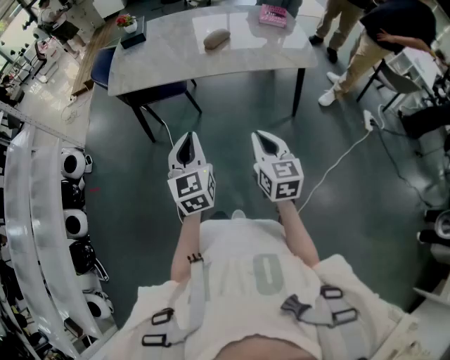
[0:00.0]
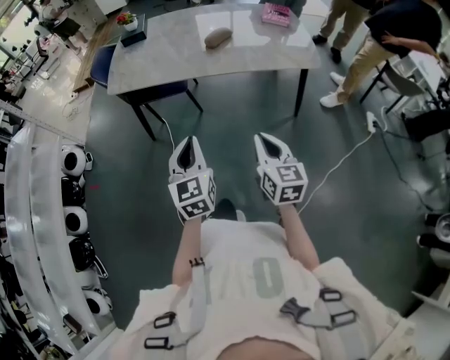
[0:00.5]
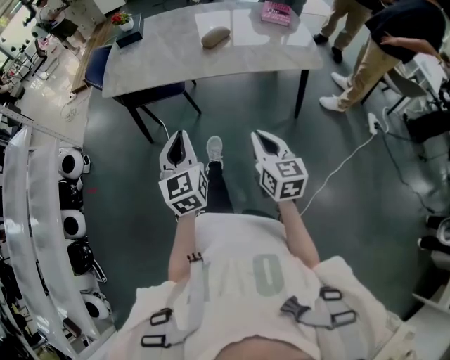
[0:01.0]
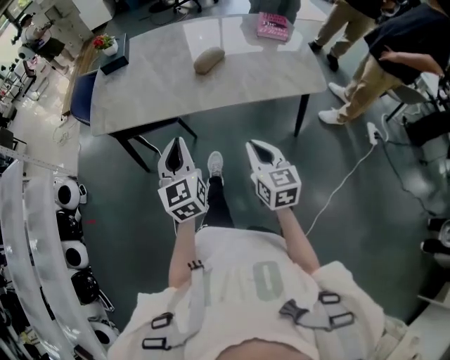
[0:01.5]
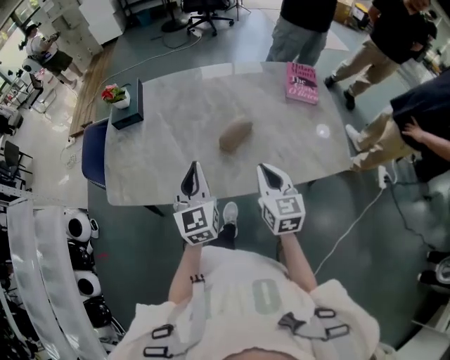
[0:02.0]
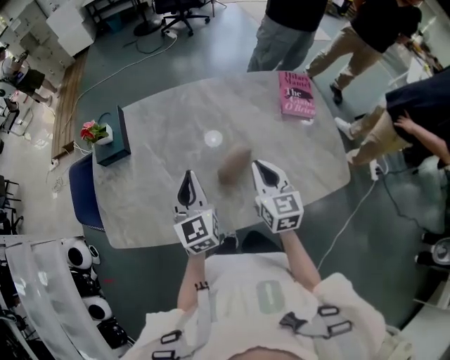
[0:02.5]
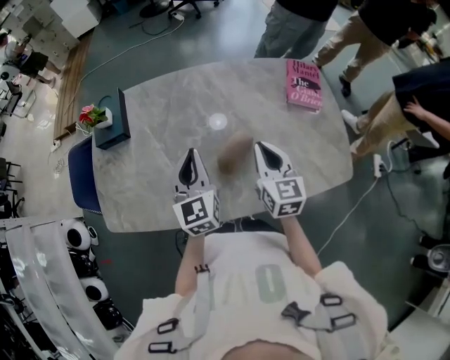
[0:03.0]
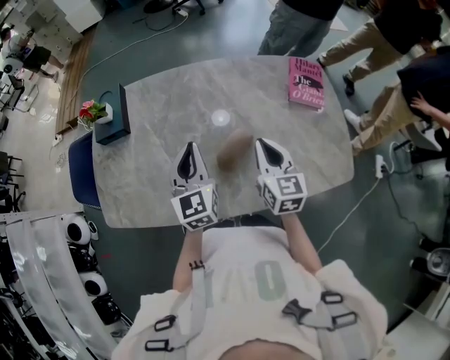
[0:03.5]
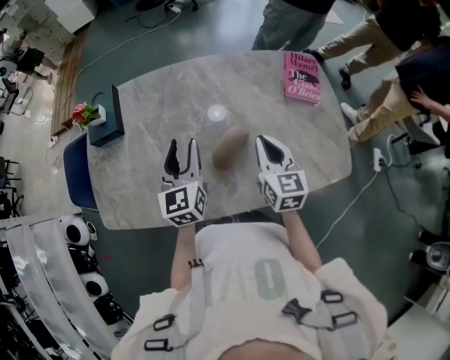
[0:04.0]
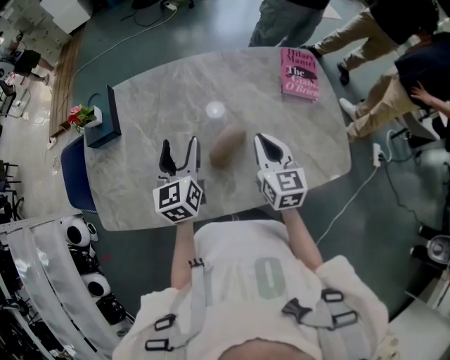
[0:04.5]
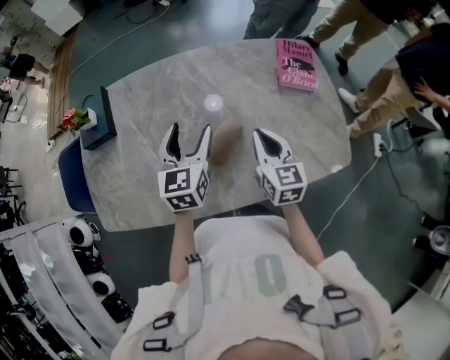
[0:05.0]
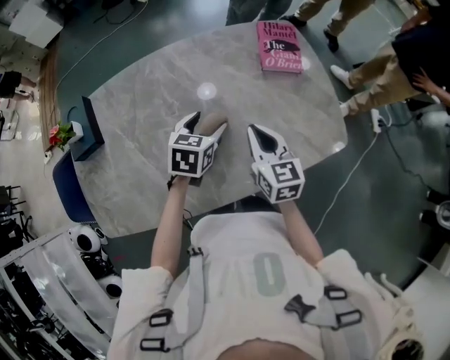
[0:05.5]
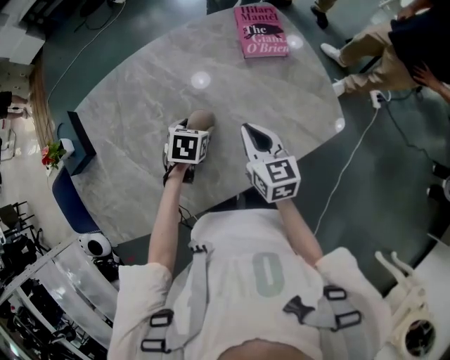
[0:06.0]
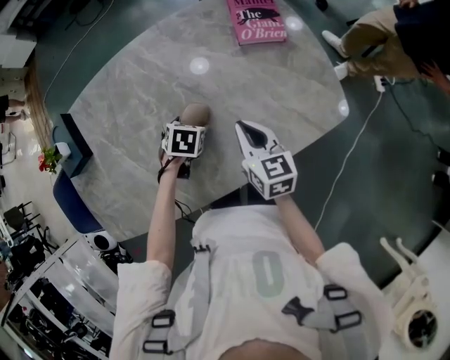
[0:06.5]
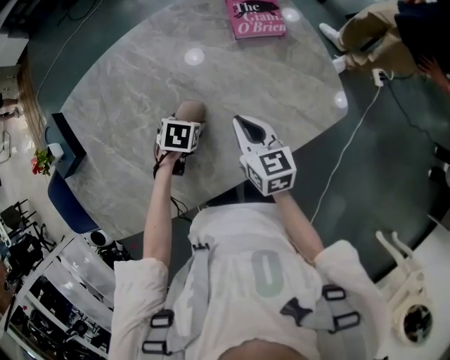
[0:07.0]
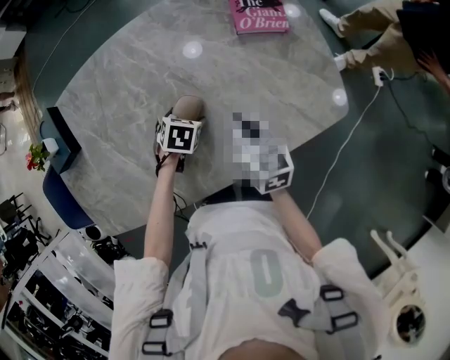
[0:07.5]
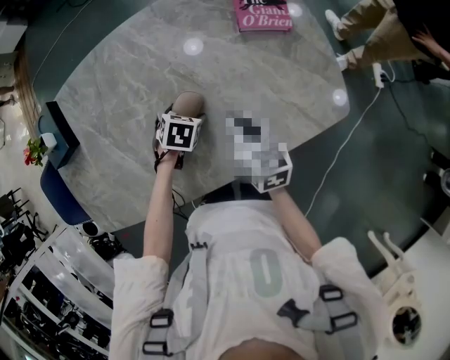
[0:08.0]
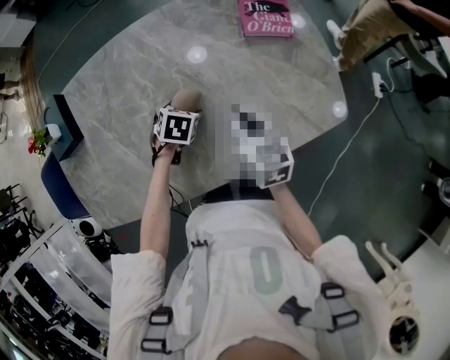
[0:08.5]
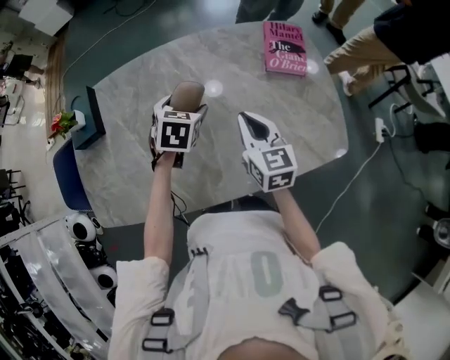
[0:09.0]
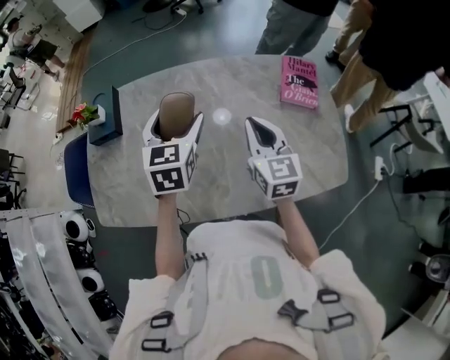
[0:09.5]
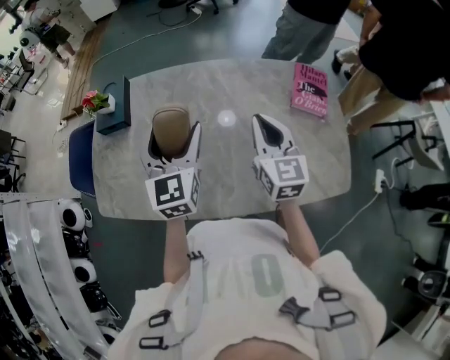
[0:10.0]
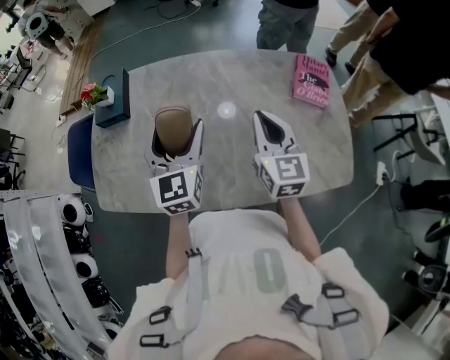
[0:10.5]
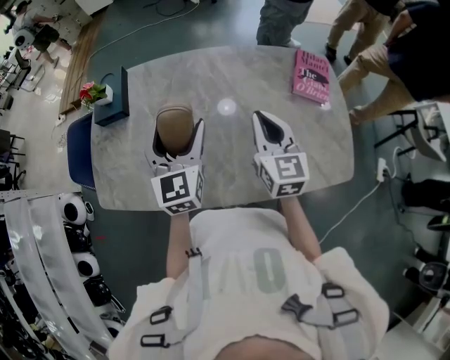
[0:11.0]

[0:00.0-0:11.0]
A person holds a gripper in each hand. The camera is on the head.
0:00.0 to 0:02.0: The pair of grippers is taken forward, about 50 cm.
0:02.0 to 0:03.5: The two grippers go about 15 cm forward.
0:03.5 to 0:05.5: The left gripper ends up roughly 20 cm from where it was, points its fingers approximately 30 degrees further downward, and opens its fingers, while the right gripper changes place by about 5 cm.
0:05.5 to 0:07.5: The right gripper heads downward, covering approximately 5 cm. The left gripper travels downward by some 15 cm, and turns by roughly 30 degrees.
0:07.5 to 0:09.0: The right gripper shifts about 10 cm upward. Meanwhile the left gripper goes approximately 15 cm upward, and rotates roughly 20 degrees.
0:09.0 to 0:11.0: The left gripper goes some 20 cm upward, to the left and backward, and angles its fingers upward, by about 40 degrees. The right gripper goes about 5 cm upward.

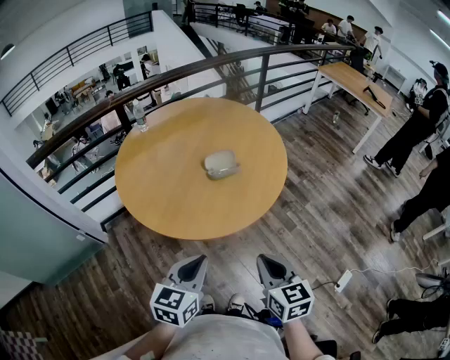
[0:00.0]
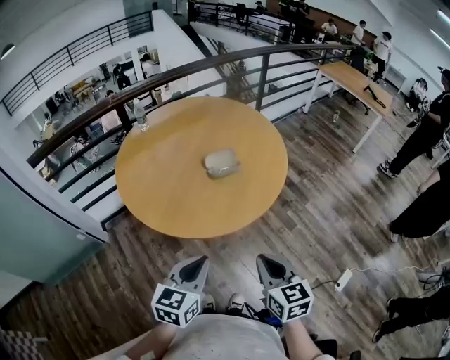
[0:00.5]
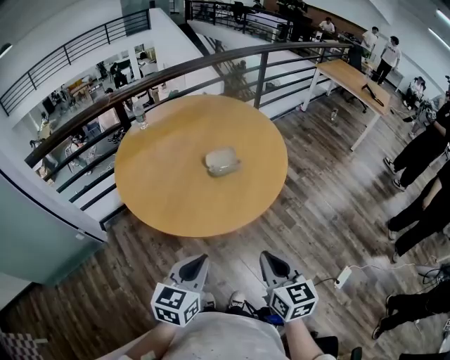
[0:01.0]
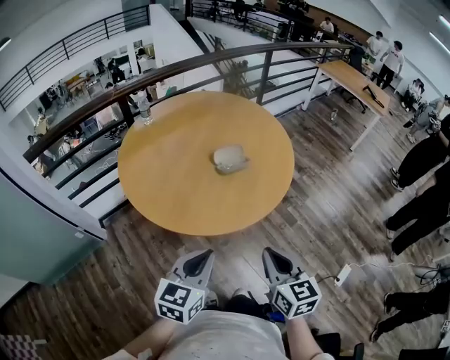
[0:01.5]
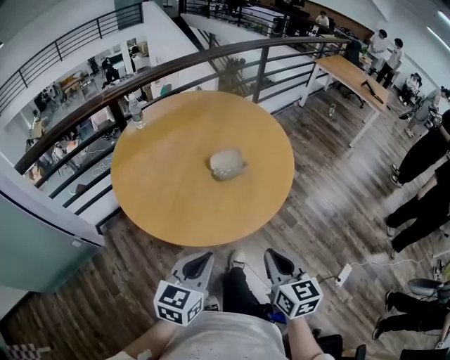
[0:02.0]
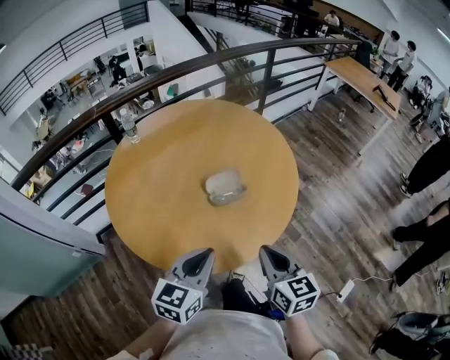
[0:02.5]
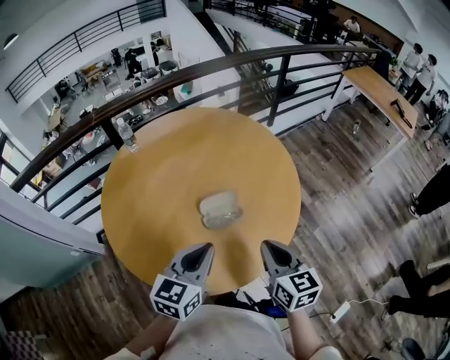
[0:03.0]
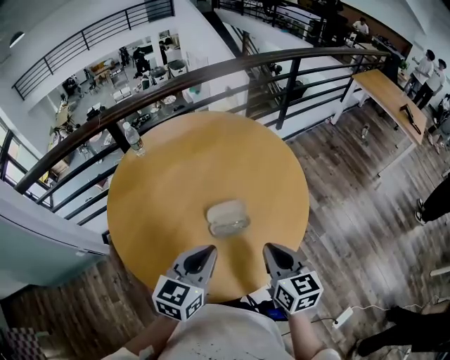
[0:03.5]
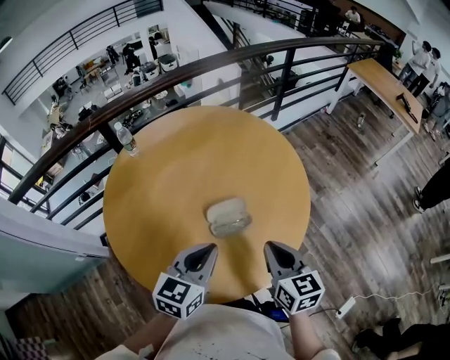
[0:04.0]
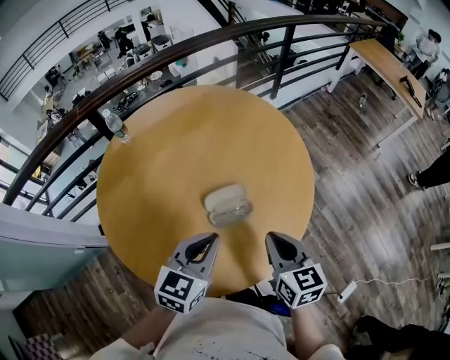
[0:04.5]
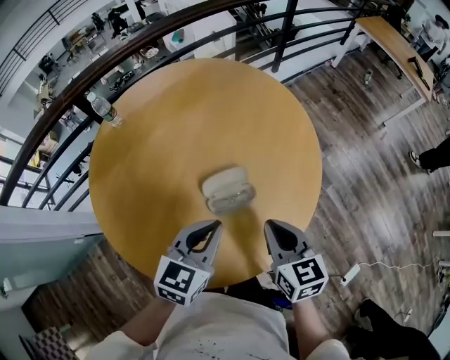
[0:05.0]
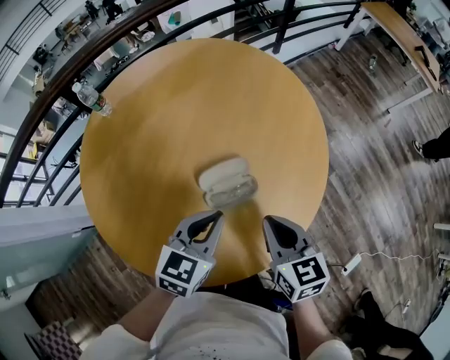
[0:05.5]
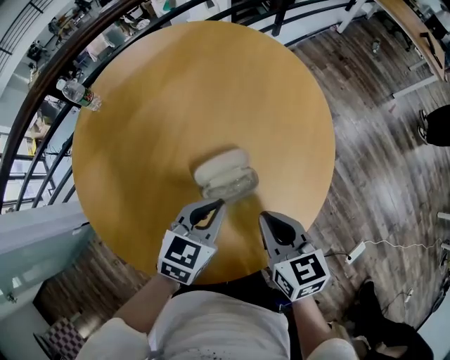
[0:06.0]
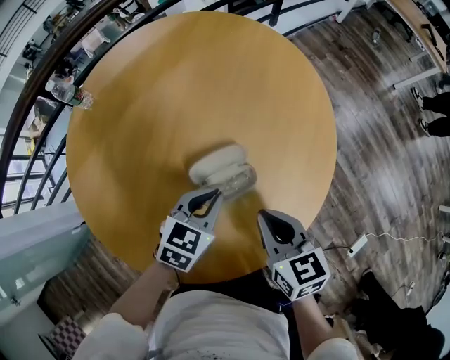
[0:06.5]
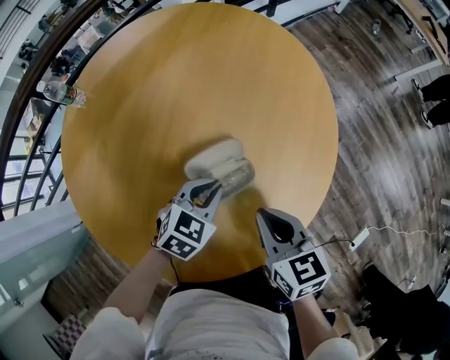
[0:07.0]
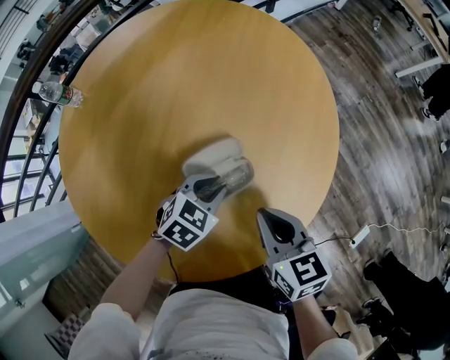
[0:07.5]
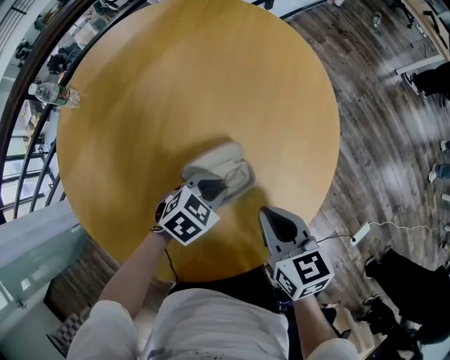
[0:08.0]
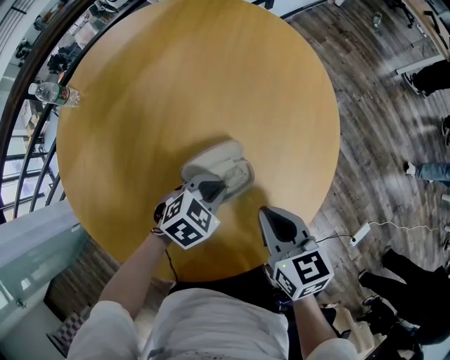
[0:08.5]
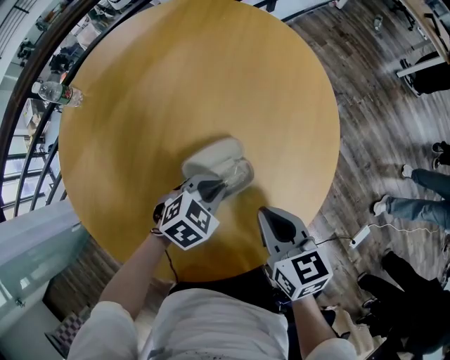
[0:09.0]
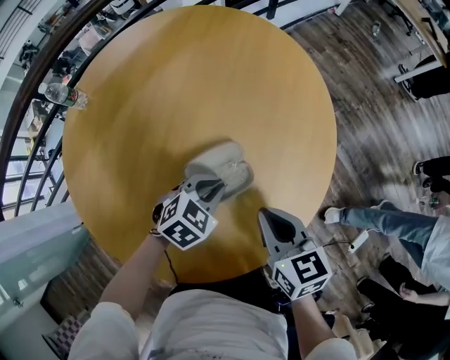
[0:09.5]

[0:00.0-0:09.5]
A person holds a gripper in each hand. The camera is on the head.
0:00.0 to 0:02.0: The left gripper shifts by some 5 cm. The right gripper shifts by some 5 cm.
0:02.0 to 0:04.0: Both grippers move forward, some 25 cm.
0:04.0 to 0:05.5: The right gripper moves downward, roughly 10 cm, while the left gripper is displaced downward and forward by roughly 10 cm.
0:05.5 to 0:07.5: The left gripper is displaced downward by approximately 15 cm, and turns by roughly 30 degrees. The right gripper goes roughly 5 cm downward.
0:07.5 to 0:09.5: The grippers stay close to where they were, moving slightly.

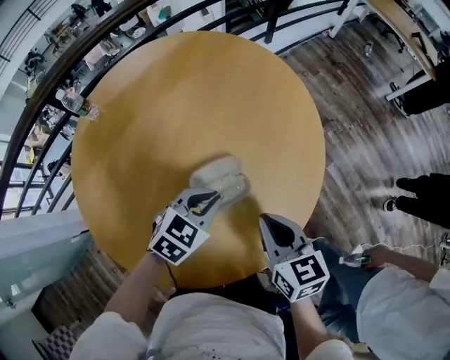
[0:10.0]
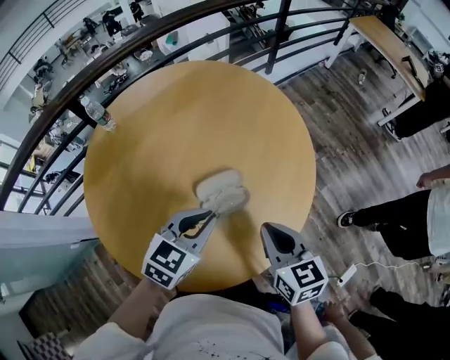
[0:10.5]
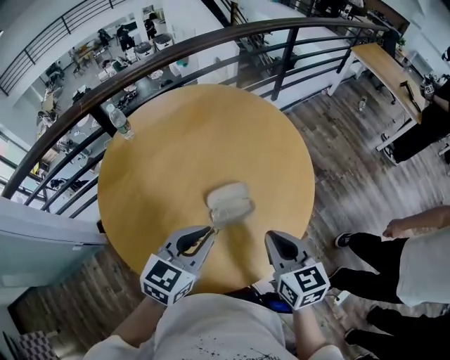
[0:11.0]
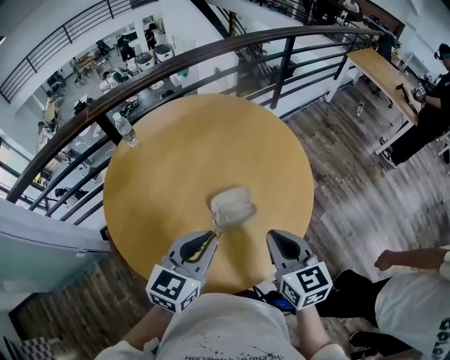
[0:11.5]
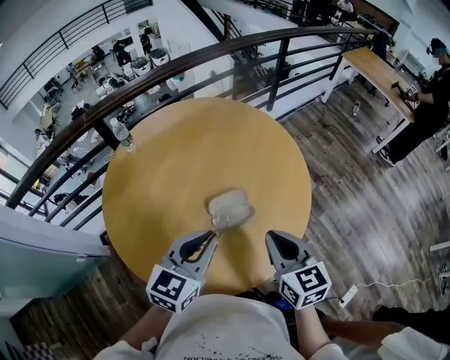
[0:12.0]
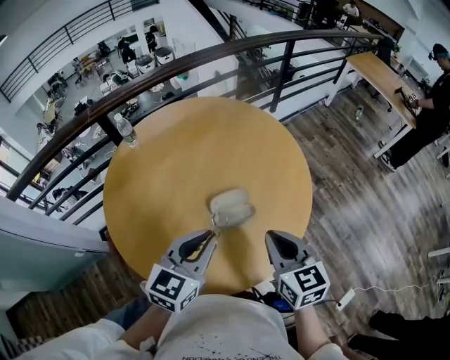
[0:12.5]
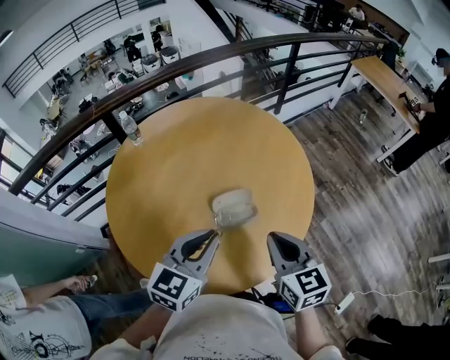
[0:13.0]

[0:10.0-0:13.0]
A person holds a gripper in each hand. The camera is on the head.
0:10.0 to 0:11.5: The left gripper moves upward and backward, roughly 20 cm, and rotates approximately 30 degrees. The right gripper travels upward by approximately 10 cm.
0:11.5 to 0:13.0: The two grippers keep their place.

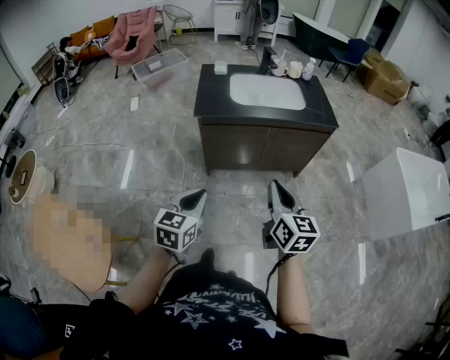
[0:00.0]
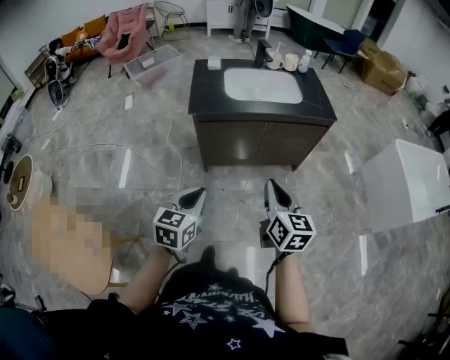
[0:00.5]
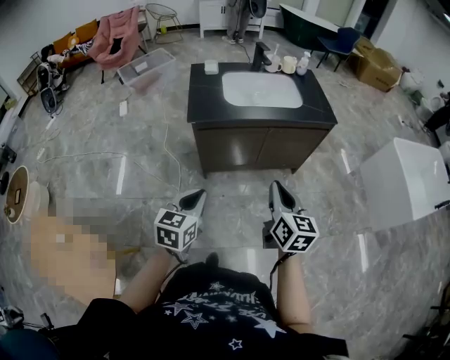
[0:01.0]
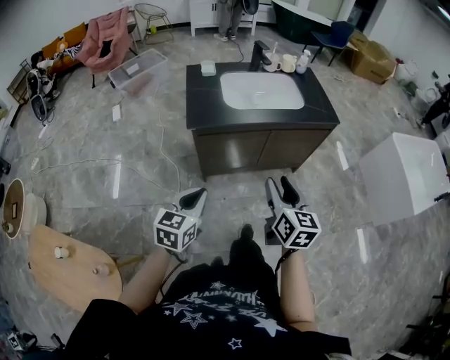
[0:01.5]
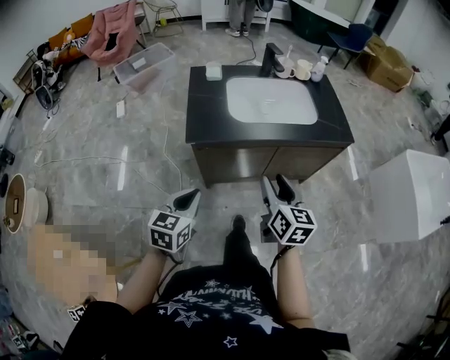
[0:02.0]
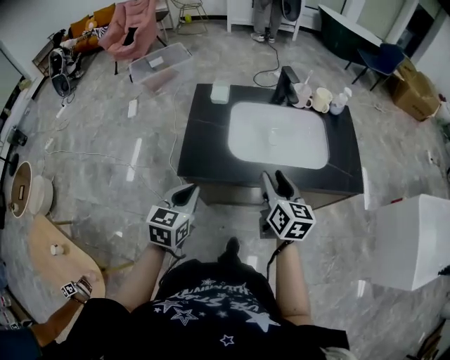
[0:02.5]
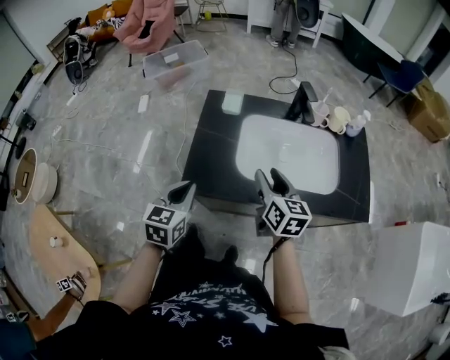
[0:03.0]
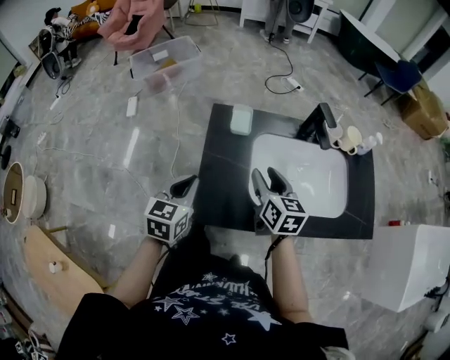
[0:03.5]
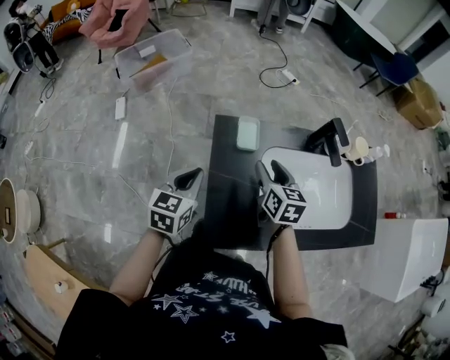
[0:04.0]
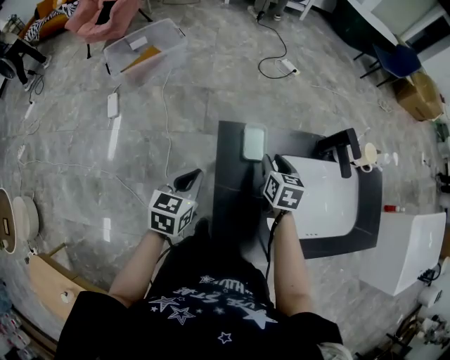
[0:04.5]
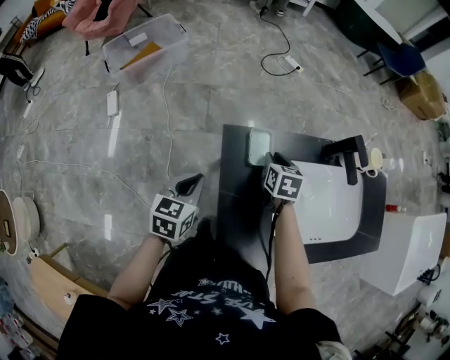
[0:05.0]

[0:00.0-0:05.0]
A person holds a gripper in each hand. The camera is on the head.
0:00.0 to 0:02.5: The two grippers go about 40 cm forward. The right gripper opens its fingers.
0:02.5 to 0:05.0: Both grippers are carried forward and to the left, about 40 cm. The right gripper is displaced downward by roughly 15 cm, tips its fingers downward by some 30 degrees, and closes.
